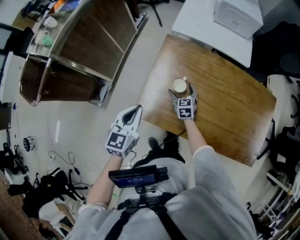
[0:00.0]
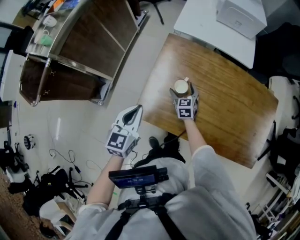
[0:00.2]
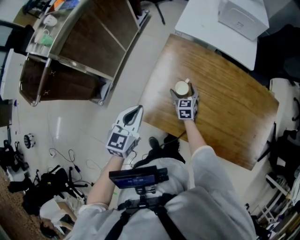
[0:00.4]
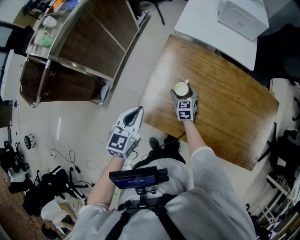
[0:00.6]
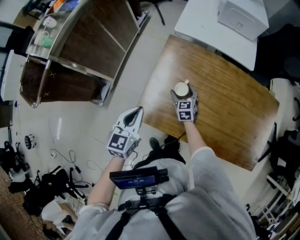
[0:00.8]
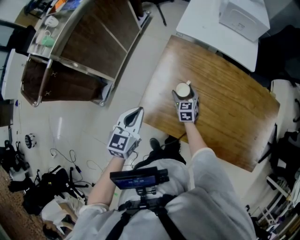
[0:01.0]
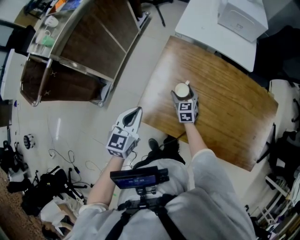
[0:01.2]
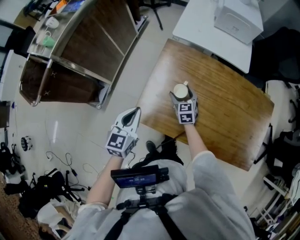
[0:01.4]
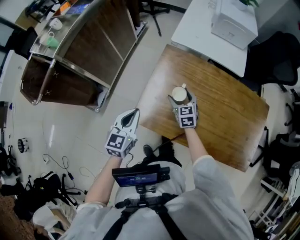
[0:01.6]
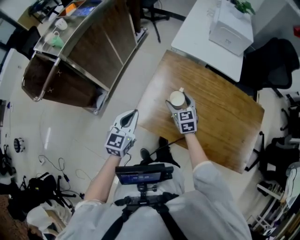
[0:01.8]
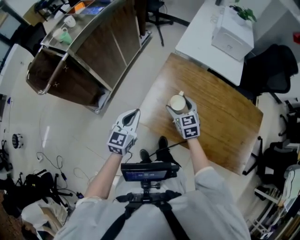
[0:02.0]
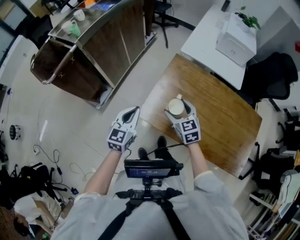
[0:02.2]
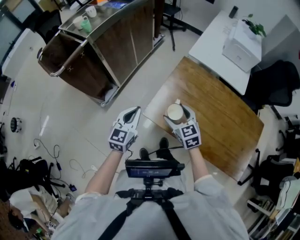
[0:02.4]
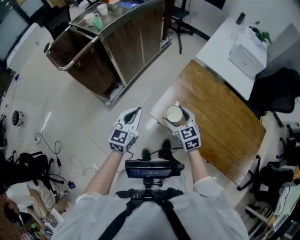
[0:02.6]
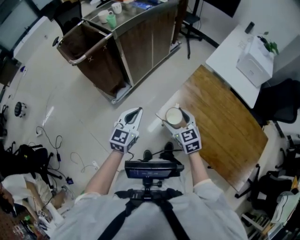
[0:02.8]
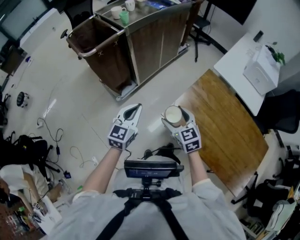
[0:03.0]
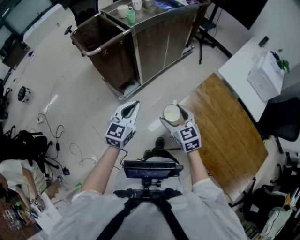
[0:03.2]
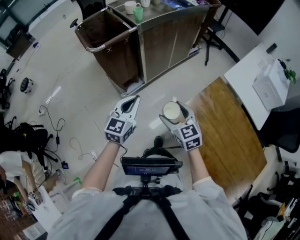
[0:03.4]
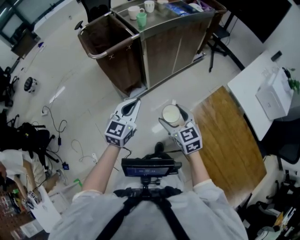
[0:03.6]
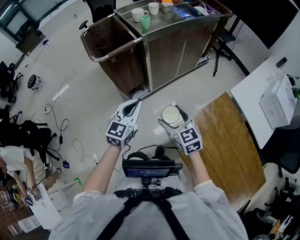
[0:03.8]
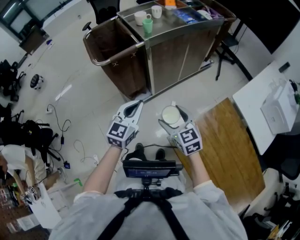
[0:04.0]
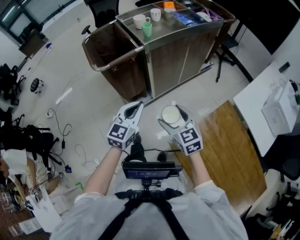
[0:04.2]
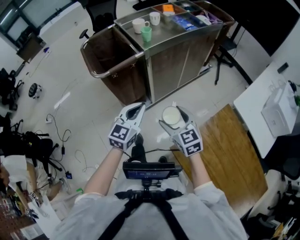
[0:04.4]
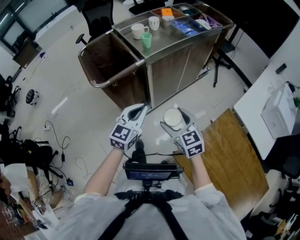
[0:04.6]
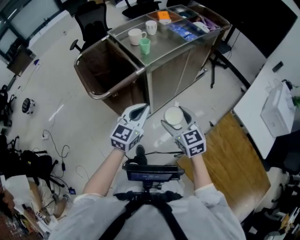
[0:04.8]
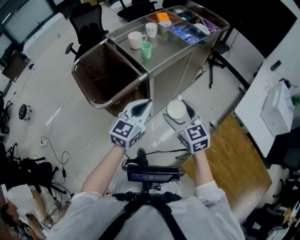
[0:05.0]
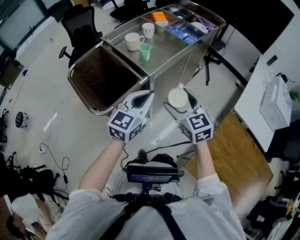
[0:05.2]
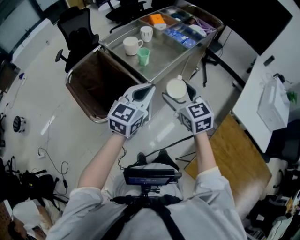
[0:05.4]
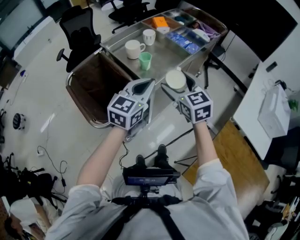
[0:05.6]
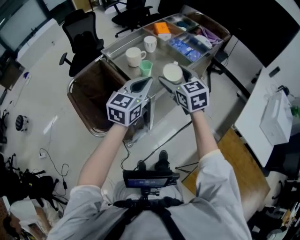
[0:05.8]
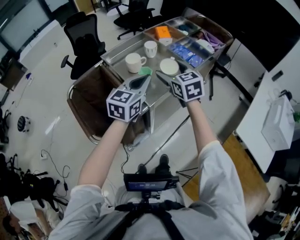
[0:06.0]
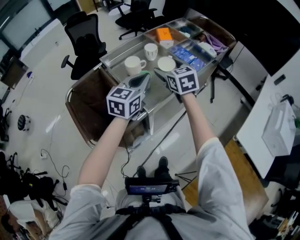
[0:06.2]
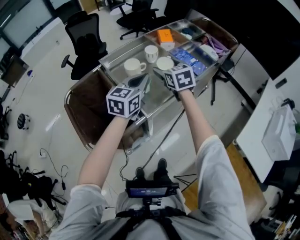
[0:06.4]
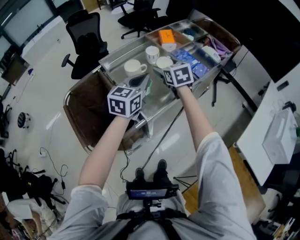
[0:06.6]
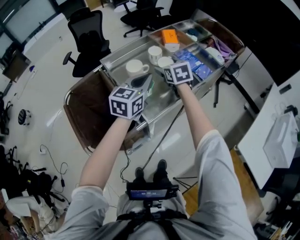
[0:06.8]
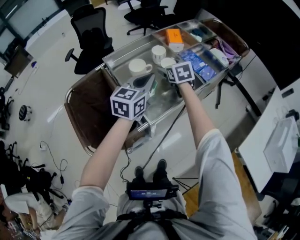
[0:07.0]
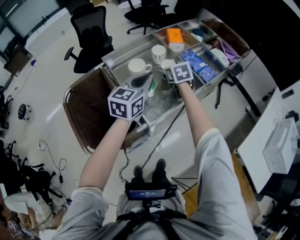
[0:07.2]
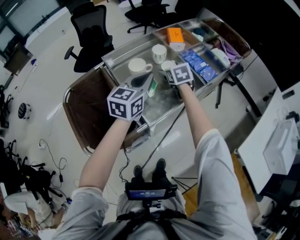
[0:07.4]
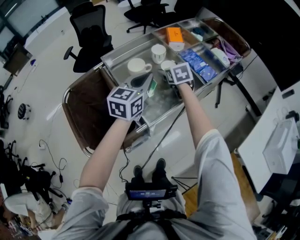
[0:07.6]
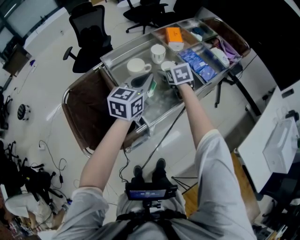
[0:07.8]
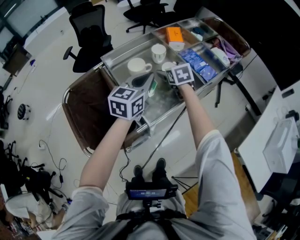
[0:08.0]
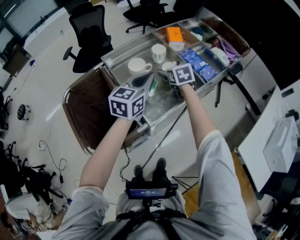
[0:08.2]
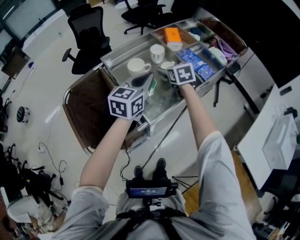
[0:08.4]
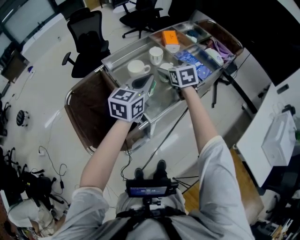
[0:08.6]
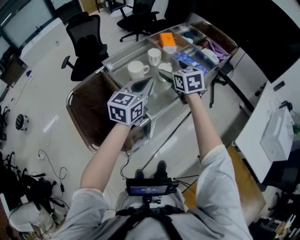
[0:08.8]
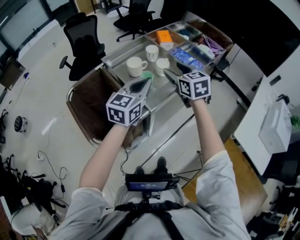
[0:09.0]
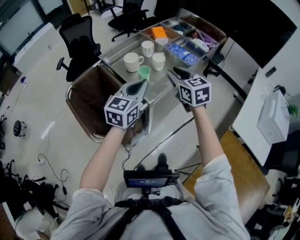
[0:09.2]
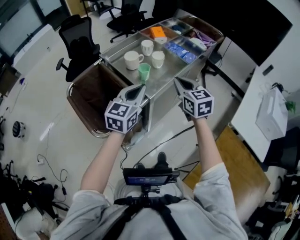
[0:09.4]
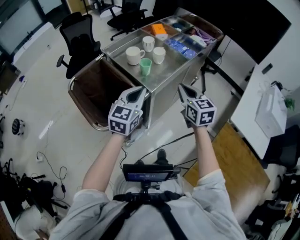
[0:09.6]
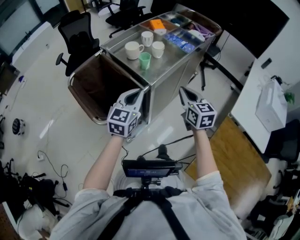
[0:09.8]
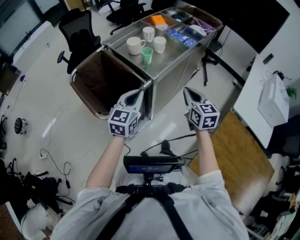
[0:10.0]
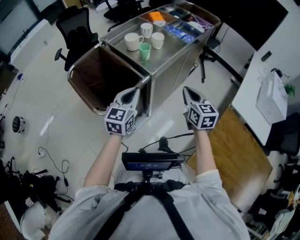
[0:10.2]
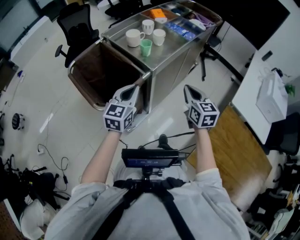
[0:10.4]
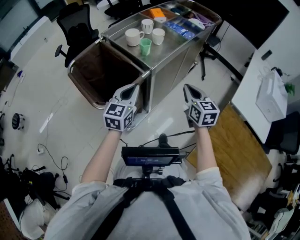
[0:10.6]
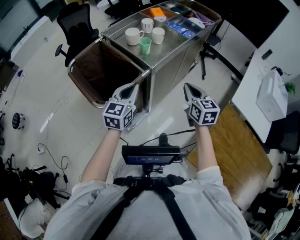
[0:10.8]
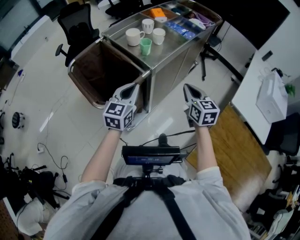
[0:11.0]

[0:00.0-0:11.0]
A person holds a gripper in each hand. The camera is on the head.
0:00.0 to 0:01.6: The right gripper moves upward, about 10 cm.
0:01.6 to 0:03.2: The left gripper moves approximately 25 cm, and turns by roughly 20 degrees. The right gripper shifts by approximately 40 cm, and swivels about 40 degrees.
0:03.2 to 0:04.8: Both grippers travel together forward, roughly 30 cm.
0:04.8 to 0:06.2: The grippers both shift forward by approximately 40 cm.
0:06.2 to 0:07.8: The right gripper moves forward and downward, roughly 15 cm. Meanwhile the left gripper heads forward, covering some 5 cm.
0:07.8 to 0:09.4: The right gripper moves backward and upward, some 30 cm, changes its angle by about 20 degrees, and closes its fingers. The left gripper travels backward by approximately 20 cm.
0:09.4 to 0:11.0: The two grippers go some 15 cm backward and downward.

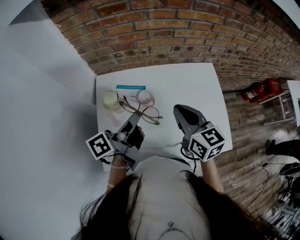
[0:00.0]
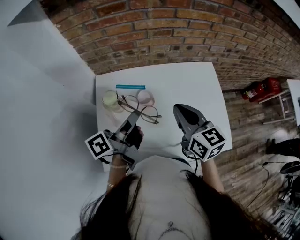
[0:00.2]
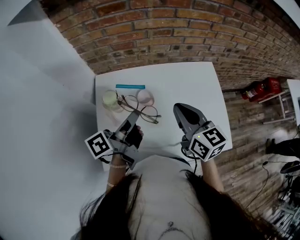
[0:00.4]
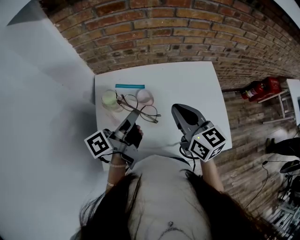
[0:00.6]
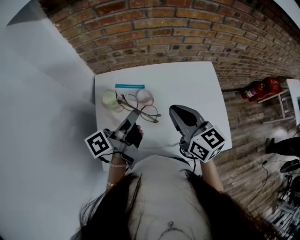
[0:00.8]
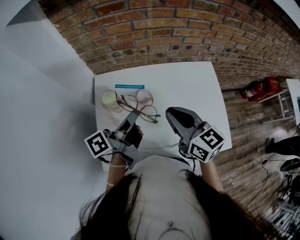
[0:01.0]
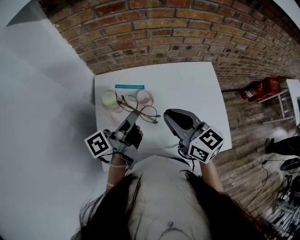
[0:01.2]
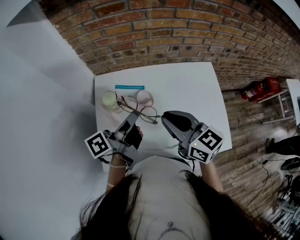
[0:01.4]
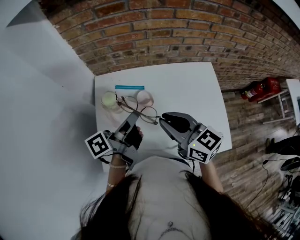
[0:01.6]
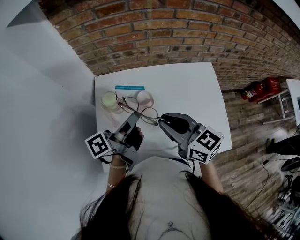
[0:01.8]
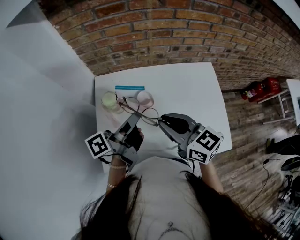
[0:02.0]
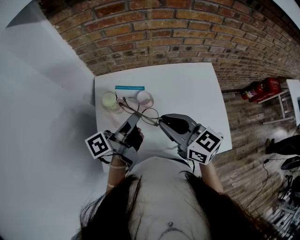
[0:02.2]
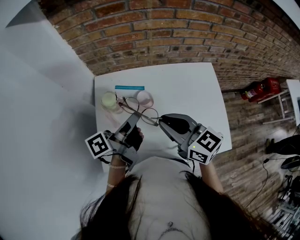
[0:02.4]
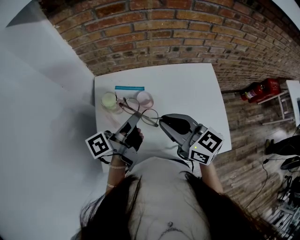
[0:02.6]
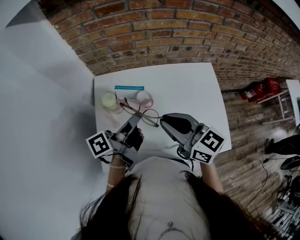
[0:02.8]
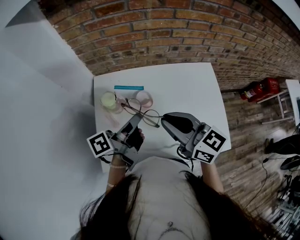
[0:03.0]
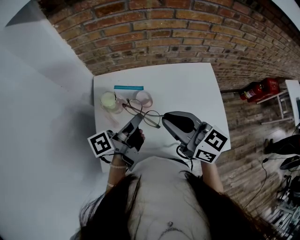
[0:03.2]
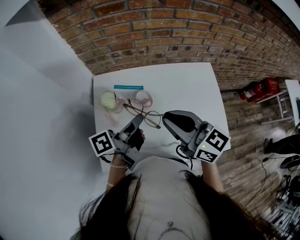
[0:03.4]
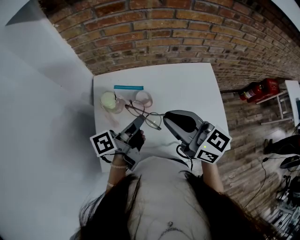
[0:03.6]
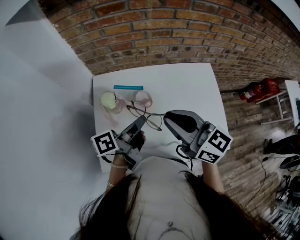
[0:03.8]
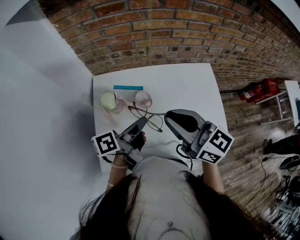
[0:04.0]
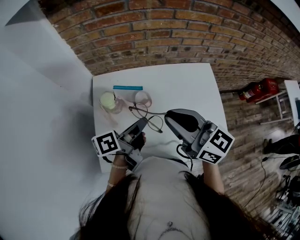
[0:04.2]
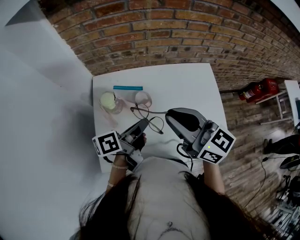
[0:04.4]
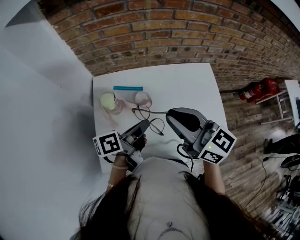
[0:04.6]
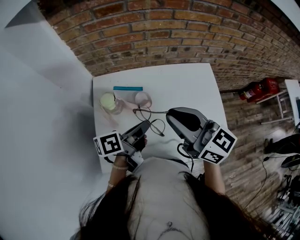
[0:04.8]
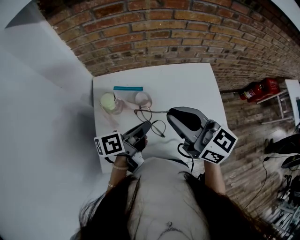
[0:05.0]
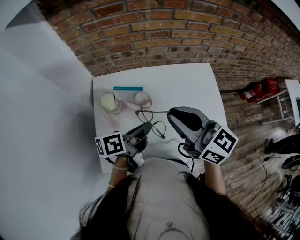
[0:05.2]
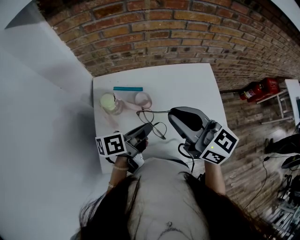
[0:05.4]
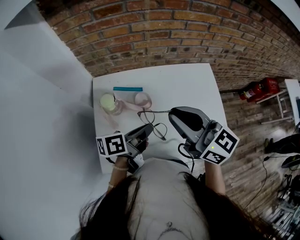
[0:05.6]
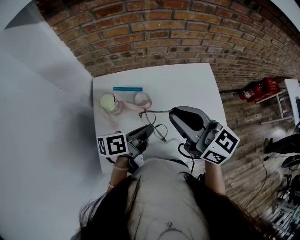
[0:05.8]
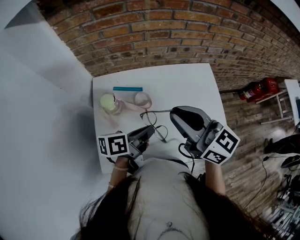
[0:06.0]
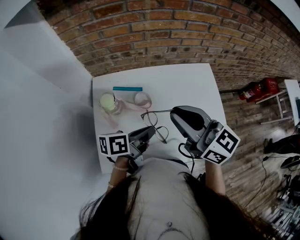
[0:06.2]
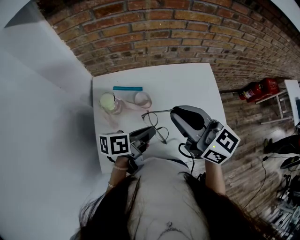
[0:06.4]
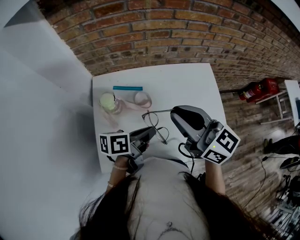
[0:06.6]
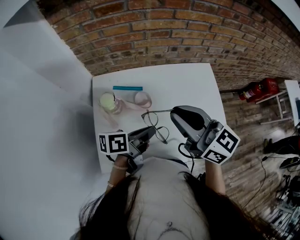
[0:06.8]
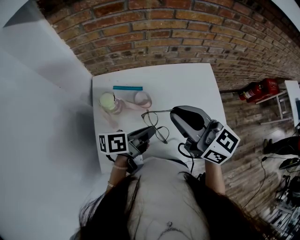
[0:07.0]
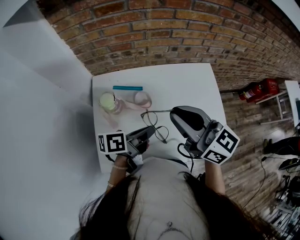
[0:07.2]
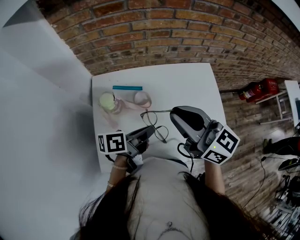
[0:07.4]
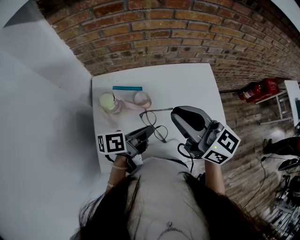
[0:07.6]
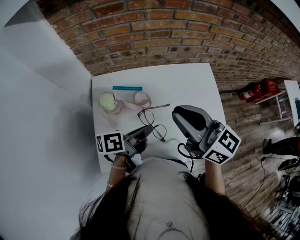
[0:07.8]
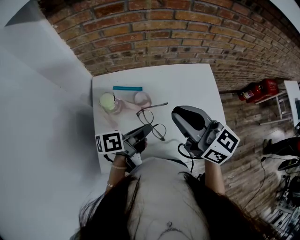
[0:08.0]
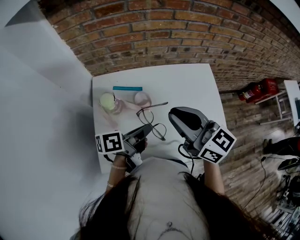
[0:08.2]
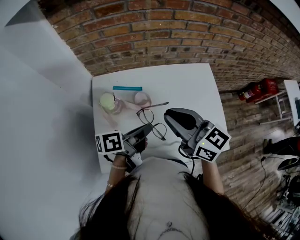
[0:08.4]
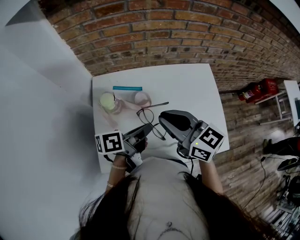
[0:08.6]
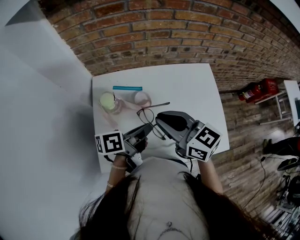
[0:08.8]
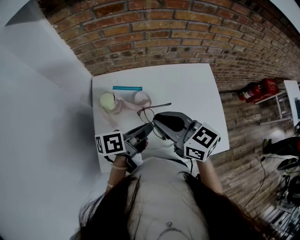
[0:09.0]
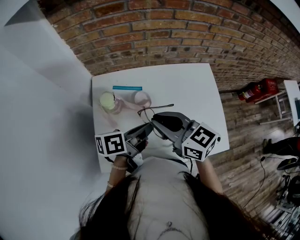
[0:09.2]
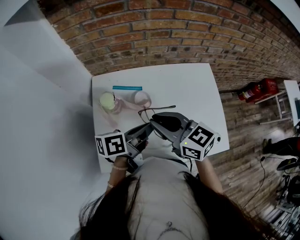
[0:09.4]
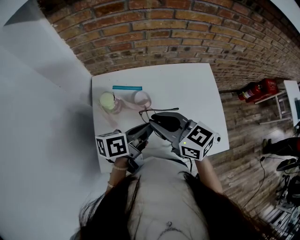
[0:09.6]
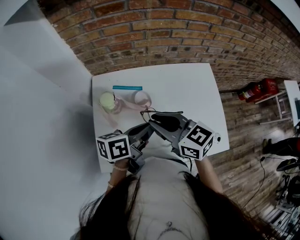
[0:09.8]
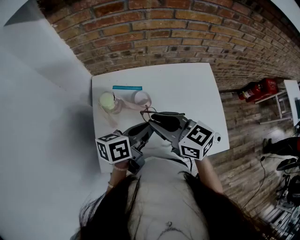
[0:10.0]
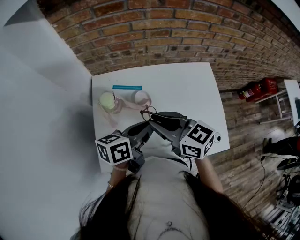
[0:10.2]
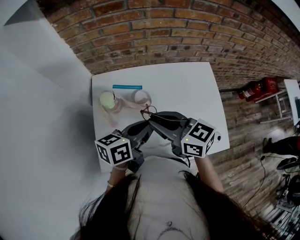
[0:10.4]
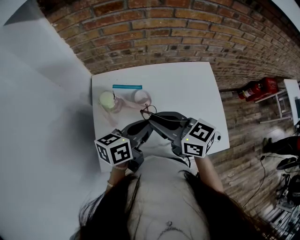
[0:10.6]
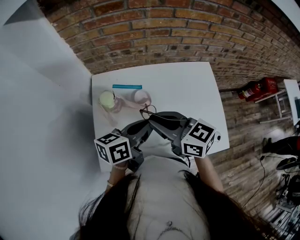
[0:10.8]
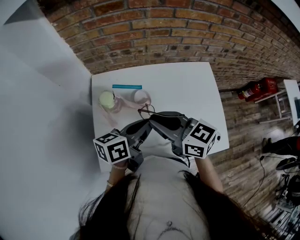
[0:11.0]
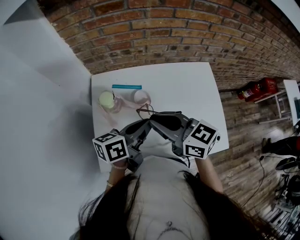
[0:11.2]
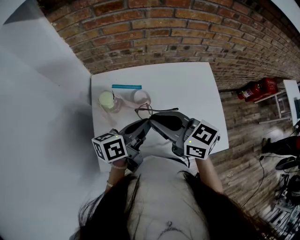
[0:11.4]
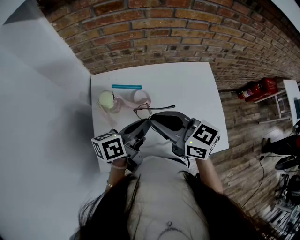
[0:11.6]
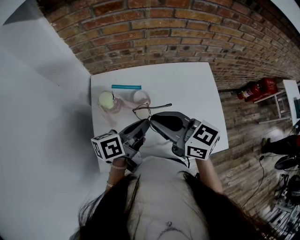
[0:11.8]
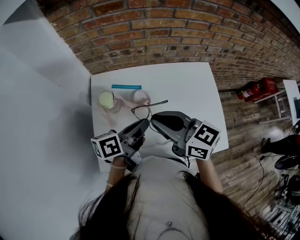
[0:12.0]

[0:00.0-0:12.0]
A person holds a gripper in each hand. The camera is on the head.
0:00.0 to 0:01.6: The right gripper ends up about 5 cm from where it was.
0:07.6 to 0:09.0: The right gripper shifts about 5 cm downward.

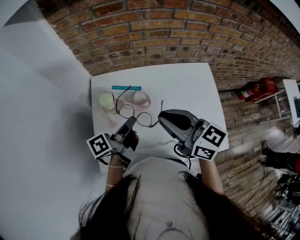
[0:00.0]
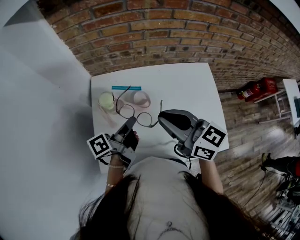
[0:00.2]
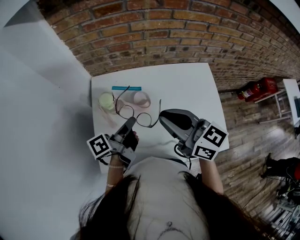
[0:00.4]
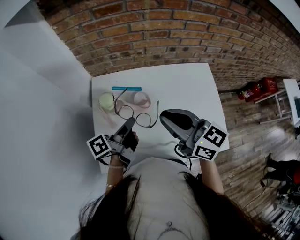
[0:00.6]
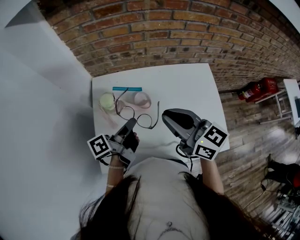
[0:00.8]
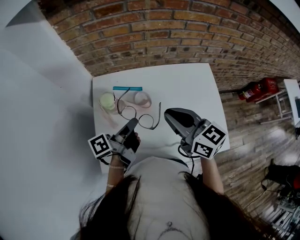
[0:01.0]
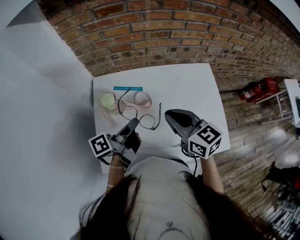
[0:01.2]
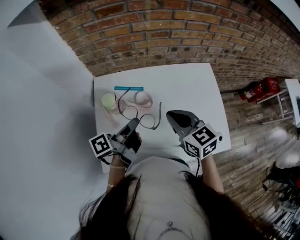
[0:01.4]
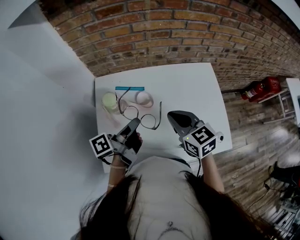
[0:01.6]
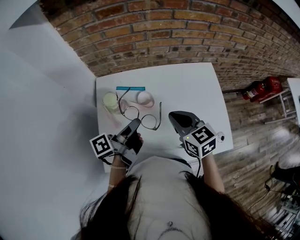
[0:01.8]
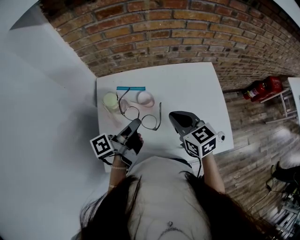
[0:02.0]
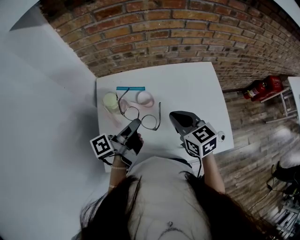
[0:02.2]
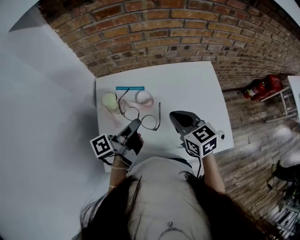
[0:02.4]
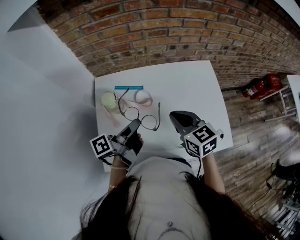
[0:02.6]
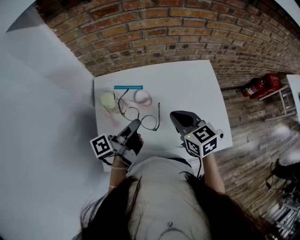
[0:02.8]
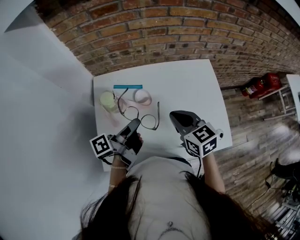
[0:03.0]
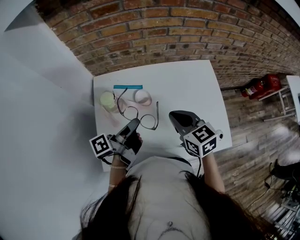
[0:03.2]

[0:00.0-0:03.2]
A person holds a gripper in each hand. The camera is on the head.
0:00.0 to 0:01.6: The right gripper goes about 10 cm downward, and changes its angle by roughly 20 degrees.
